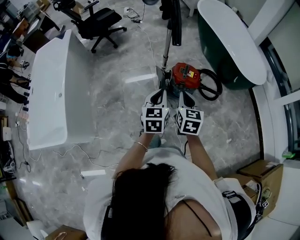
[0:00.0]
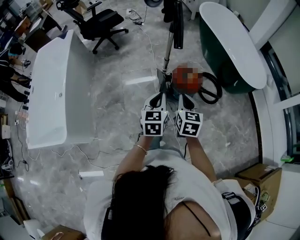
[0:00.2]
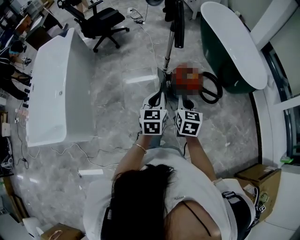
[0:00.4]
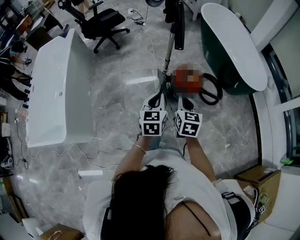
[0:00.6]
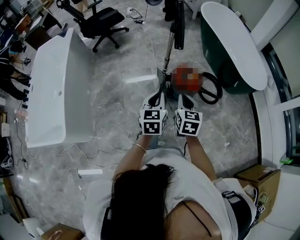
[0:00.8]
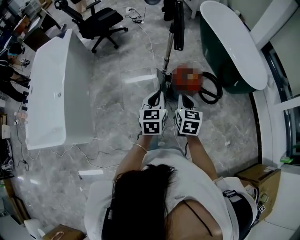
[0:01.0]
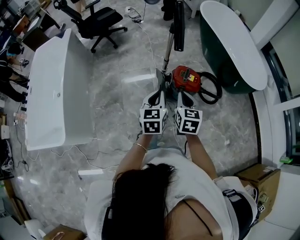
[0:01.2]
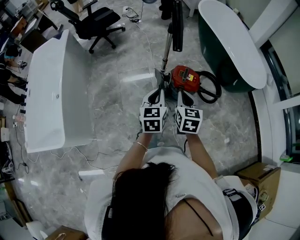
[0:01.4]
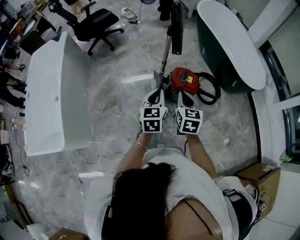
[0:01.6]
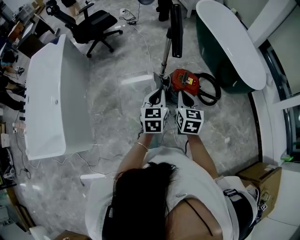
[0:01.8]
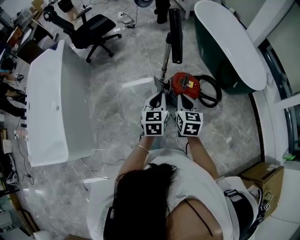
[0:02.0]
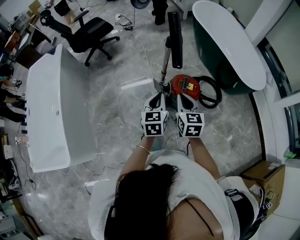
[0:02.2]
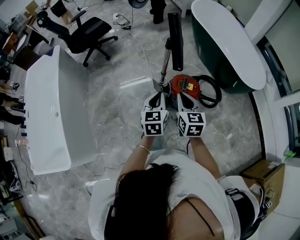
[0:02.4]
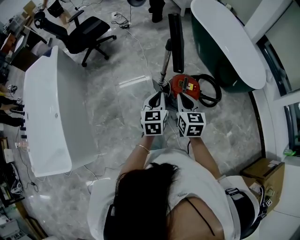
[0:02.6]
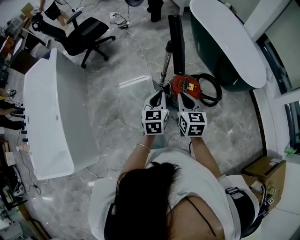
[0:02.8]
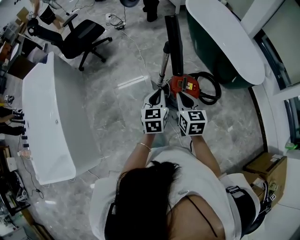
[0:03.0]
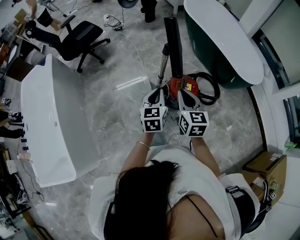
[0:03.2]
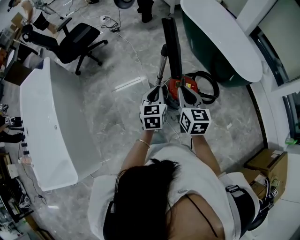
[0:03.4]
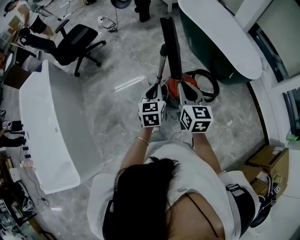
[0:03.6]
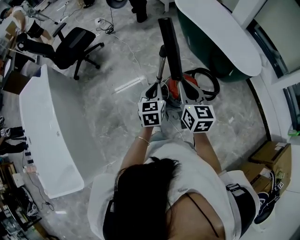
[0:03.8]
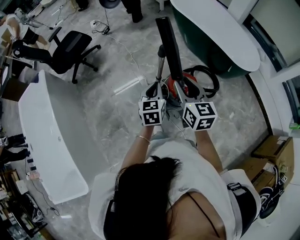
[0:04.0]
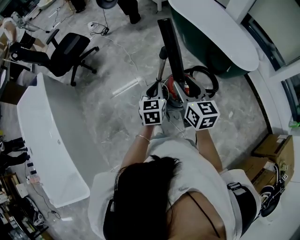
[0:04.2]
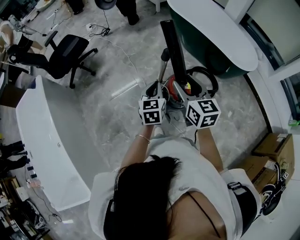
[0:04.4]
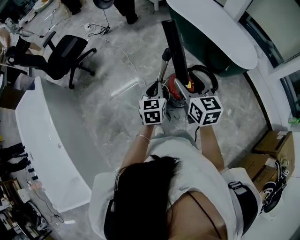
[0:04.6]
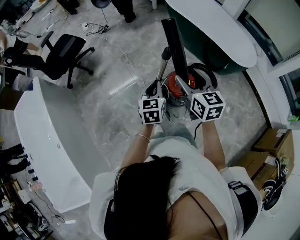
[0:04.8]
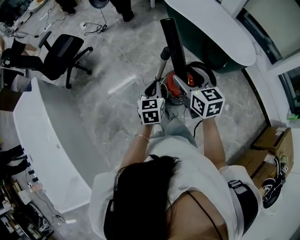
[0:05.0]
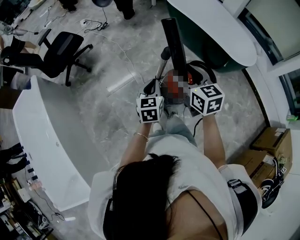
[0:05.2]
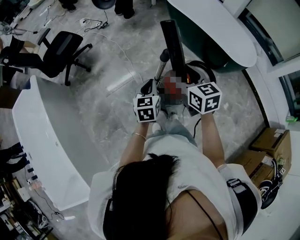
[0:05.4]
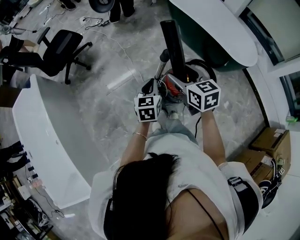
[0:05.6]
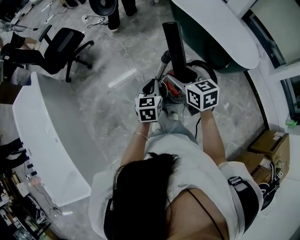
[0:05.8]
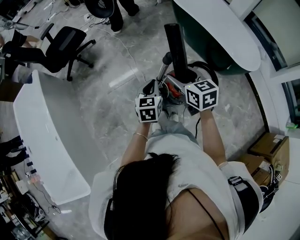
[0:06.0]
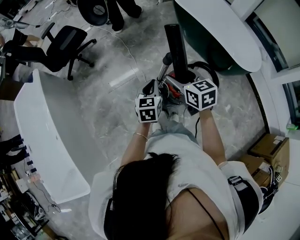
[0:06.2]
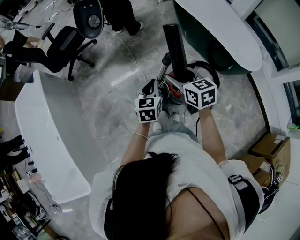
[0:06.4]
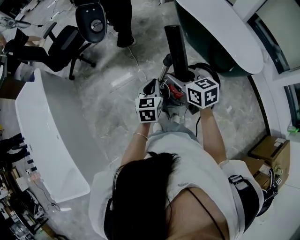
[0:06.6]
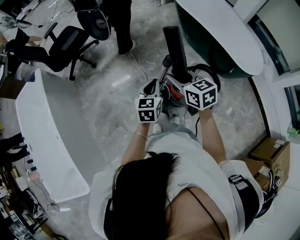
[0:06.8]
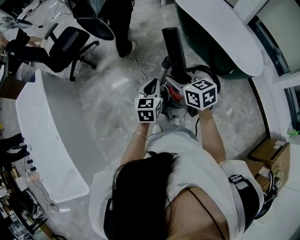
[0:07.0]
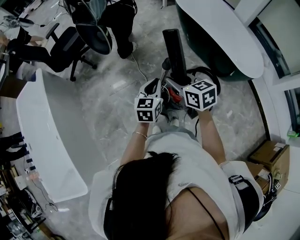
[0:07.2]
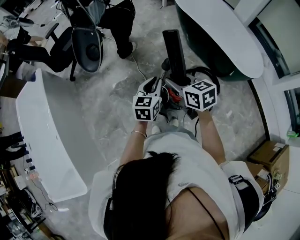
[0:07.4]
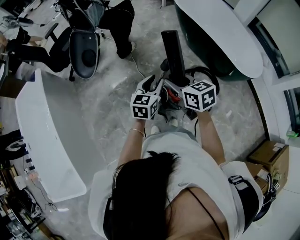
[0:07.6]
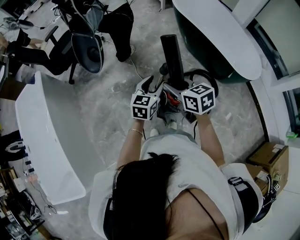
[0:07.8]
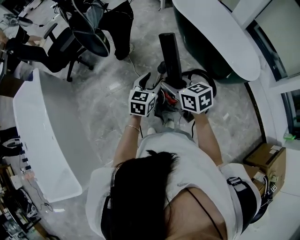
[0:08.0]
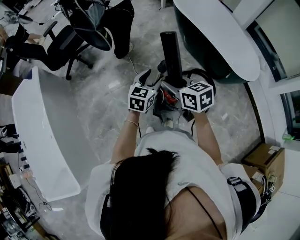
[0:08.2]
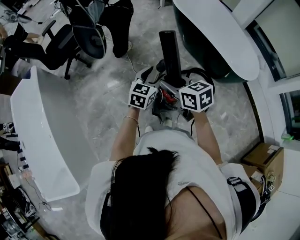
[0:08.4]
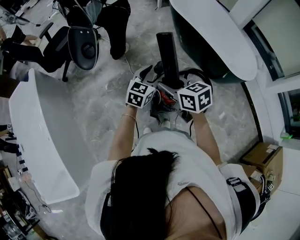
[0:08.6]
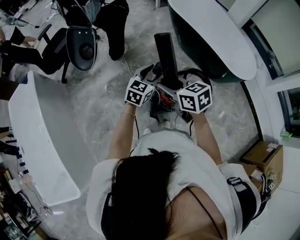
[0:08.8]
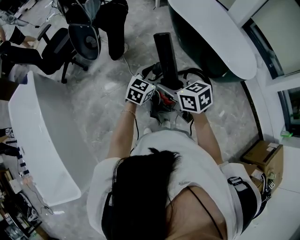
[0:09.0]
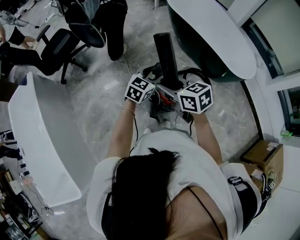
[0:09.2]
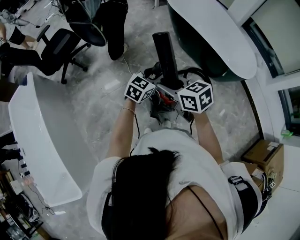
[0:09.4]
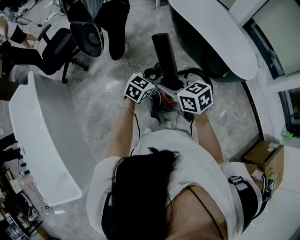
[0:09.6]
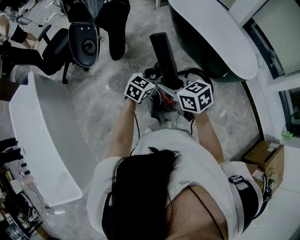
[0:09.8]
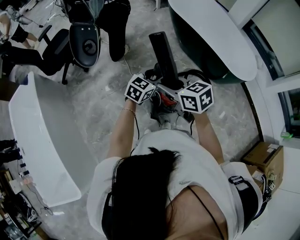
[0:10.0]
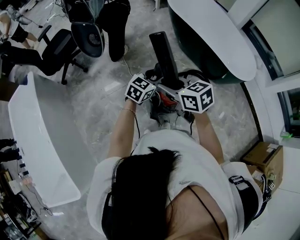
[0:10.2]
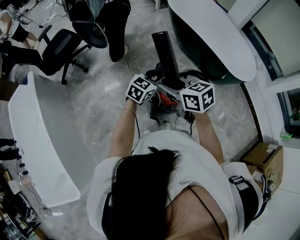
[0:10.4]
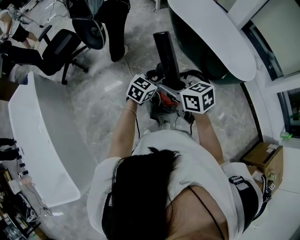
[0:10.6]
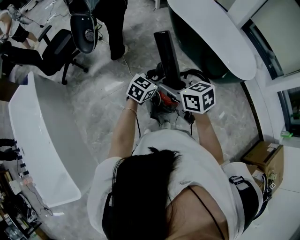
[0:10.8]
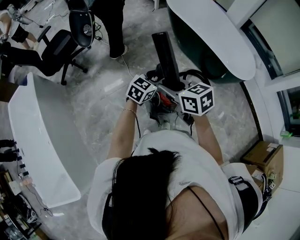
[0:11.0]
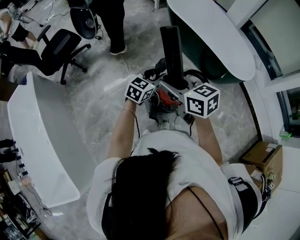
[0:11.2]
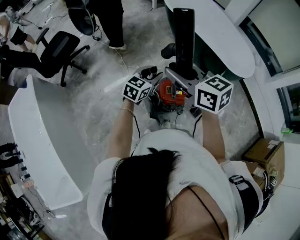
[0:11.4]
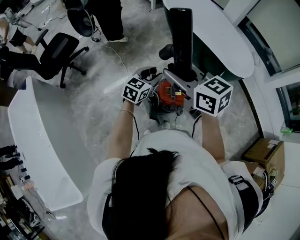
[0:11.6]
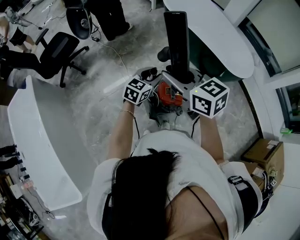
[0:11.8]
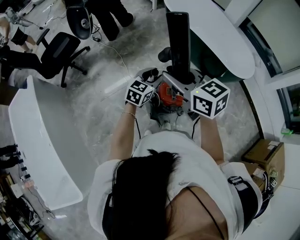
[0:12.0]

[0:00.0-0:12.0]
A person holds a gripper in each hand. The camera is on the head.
0:00.0 to 0:01.6: The grippers both shift forward by about 5 cm.
0:01.6 to 0:03.0: Both grippers travel together forward, roughly 15 cm.
0:03.0 to 0:04.4: The left gripper goes some 10 cm forward; the right gripper is displaced forward and upward by roughly 10 cm, and opens up.
0:04.4 to 0:06.0: The right gripper moves forward, about 5 cm.
0:06.0 to 0:07.6: The right gripper closes its fingers; the left gripper changes place by about 5 cm, and opens its fingers.
0:07.6 to 0:09.0: The left gripper shifts approximately 10 cm to the right and forward, rotates some 20 degrees, and opens up.
0:09.0 to 0:10.4: The grippers make only small movements.
0:10.4 to 0:12.0: The right gripper goes some 10 cm upward.

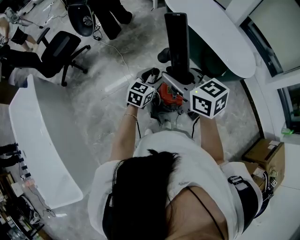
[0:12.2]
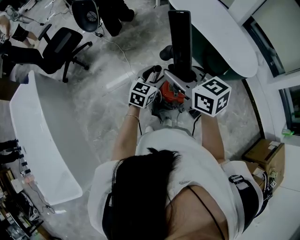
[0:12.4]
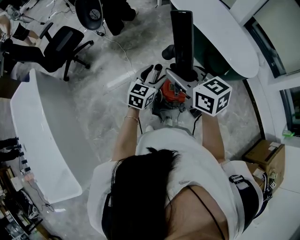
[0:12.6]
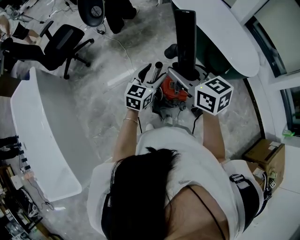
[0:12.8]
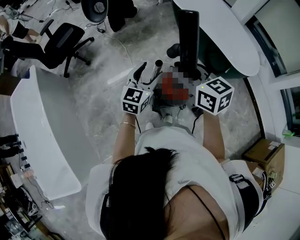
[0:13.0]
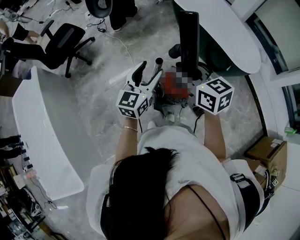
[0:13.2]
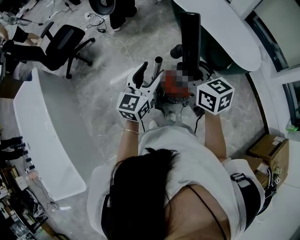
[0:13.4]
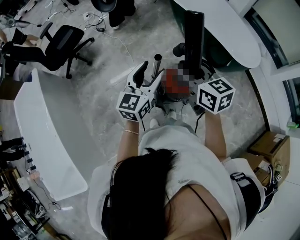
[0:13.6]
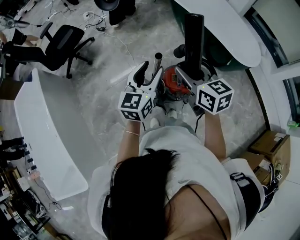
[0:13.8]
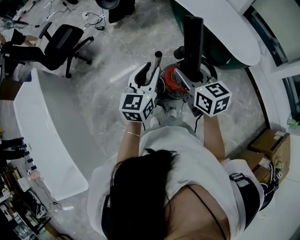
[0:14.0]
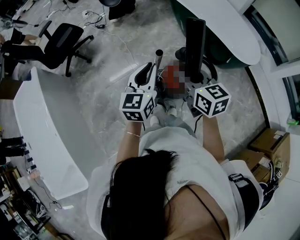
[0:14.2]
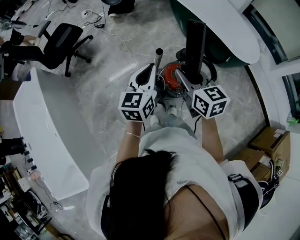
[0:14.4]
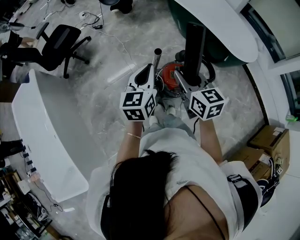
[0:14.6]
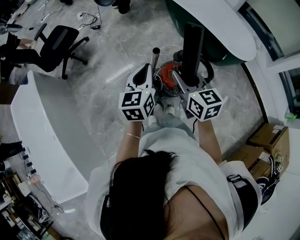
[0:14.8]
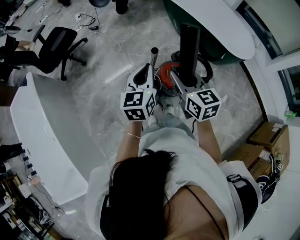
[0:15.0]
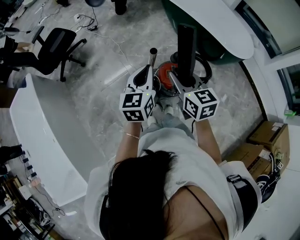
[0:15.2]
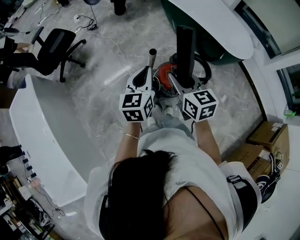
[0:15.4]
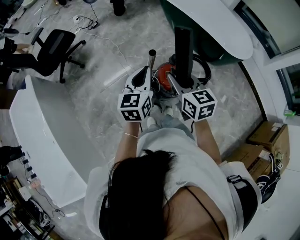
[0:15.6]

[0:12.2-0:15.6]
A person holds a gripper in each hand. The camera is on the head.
0:12.2 to 0:13.8: The left gripper heads upward, backward and to the left, covering approximately 15 cm, and changes its angle by some 20 degrees. The right gripper changes place by some 5 cm.
0:13.8 to 0:15.6: The left gripper closes its fingers, while the right gripper changes place by some 5 cm.

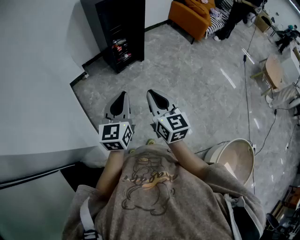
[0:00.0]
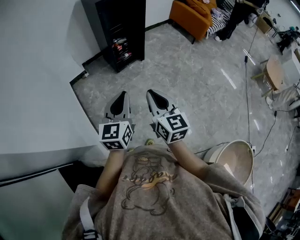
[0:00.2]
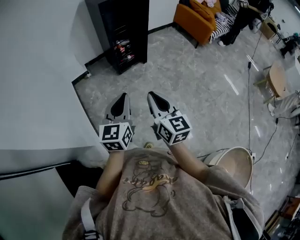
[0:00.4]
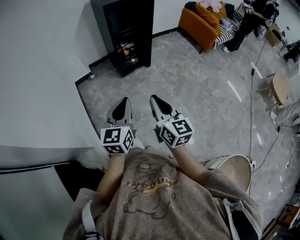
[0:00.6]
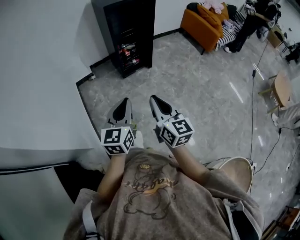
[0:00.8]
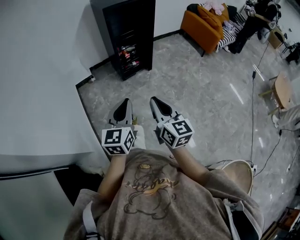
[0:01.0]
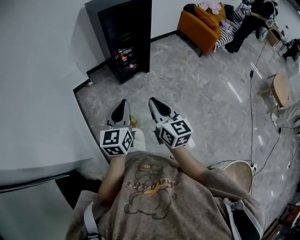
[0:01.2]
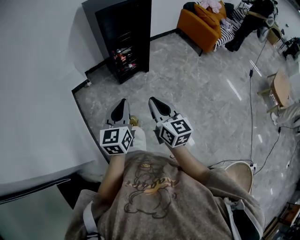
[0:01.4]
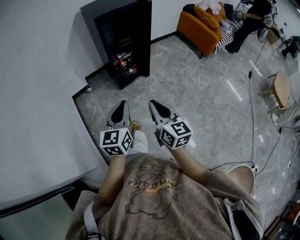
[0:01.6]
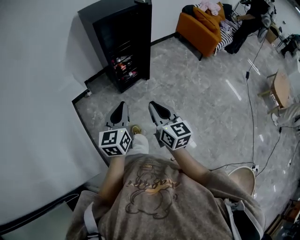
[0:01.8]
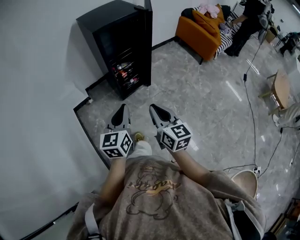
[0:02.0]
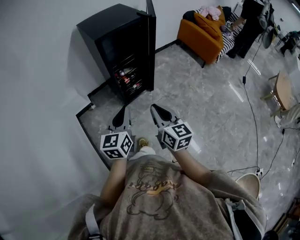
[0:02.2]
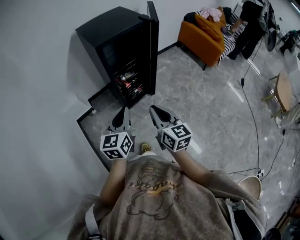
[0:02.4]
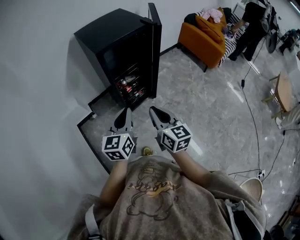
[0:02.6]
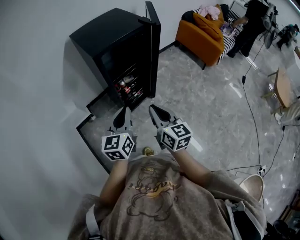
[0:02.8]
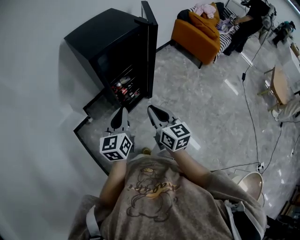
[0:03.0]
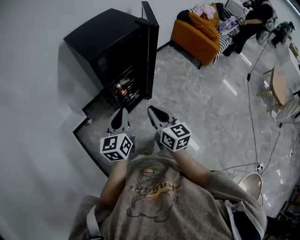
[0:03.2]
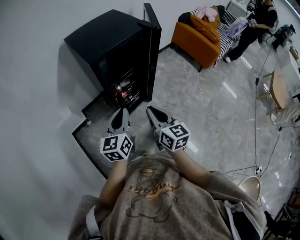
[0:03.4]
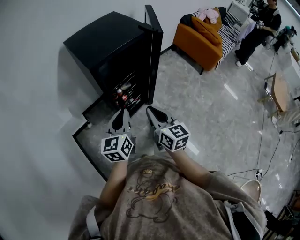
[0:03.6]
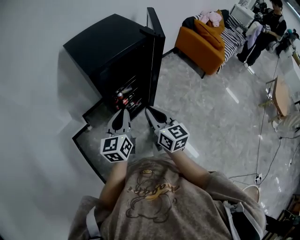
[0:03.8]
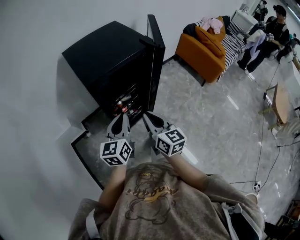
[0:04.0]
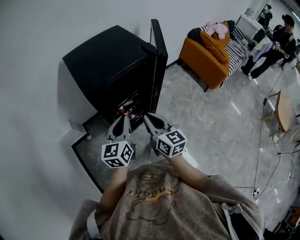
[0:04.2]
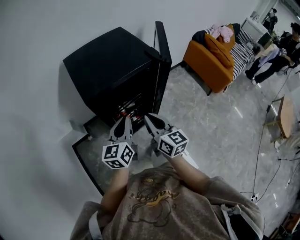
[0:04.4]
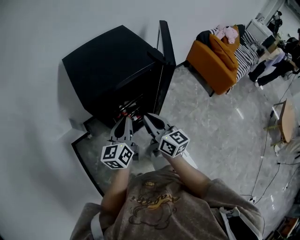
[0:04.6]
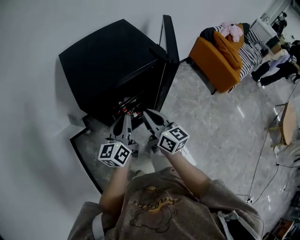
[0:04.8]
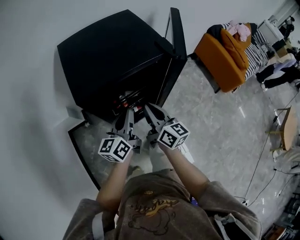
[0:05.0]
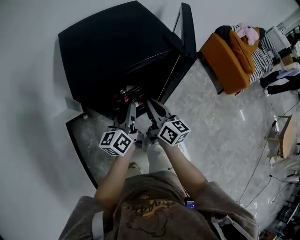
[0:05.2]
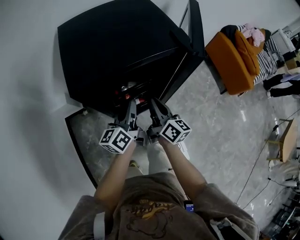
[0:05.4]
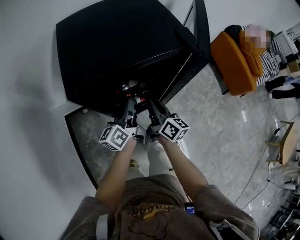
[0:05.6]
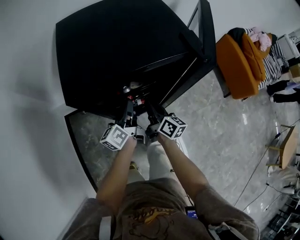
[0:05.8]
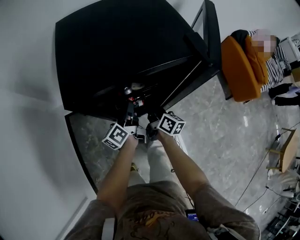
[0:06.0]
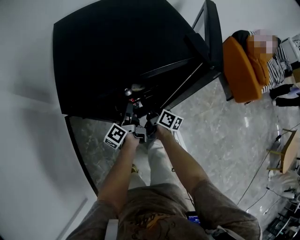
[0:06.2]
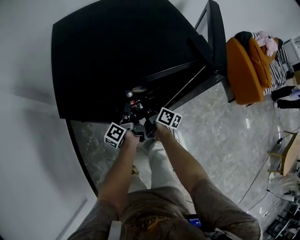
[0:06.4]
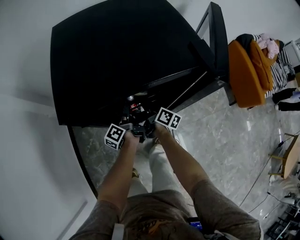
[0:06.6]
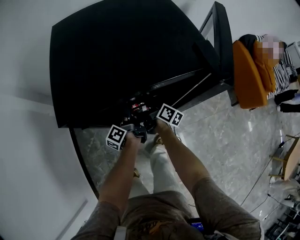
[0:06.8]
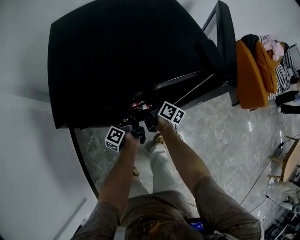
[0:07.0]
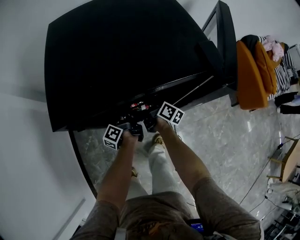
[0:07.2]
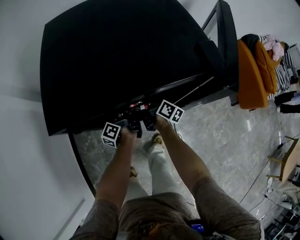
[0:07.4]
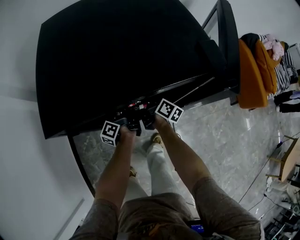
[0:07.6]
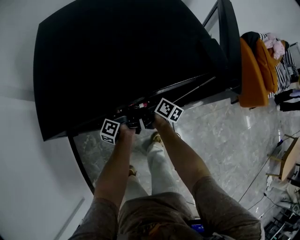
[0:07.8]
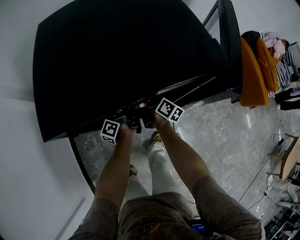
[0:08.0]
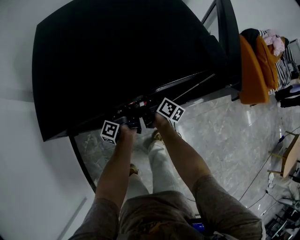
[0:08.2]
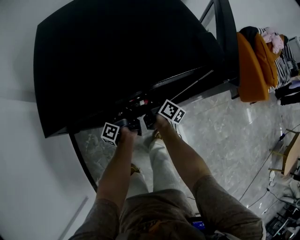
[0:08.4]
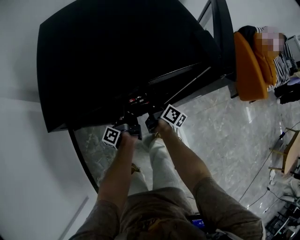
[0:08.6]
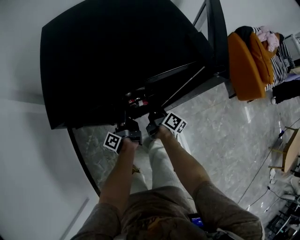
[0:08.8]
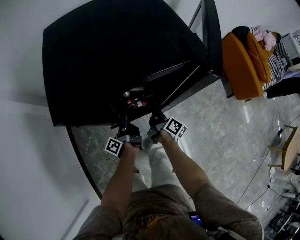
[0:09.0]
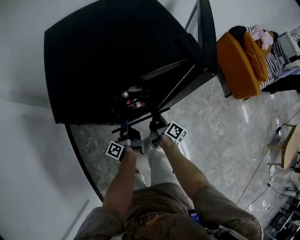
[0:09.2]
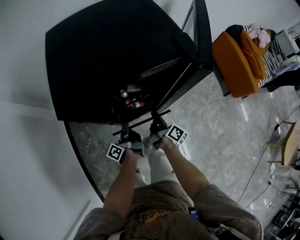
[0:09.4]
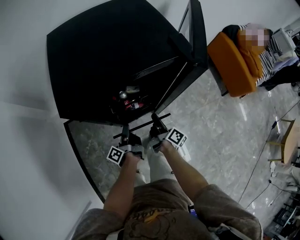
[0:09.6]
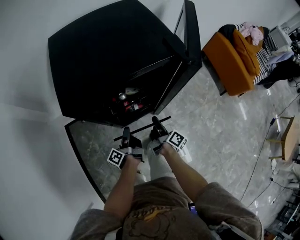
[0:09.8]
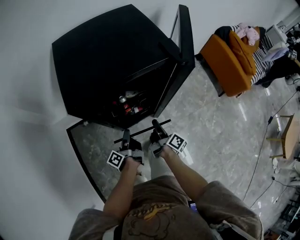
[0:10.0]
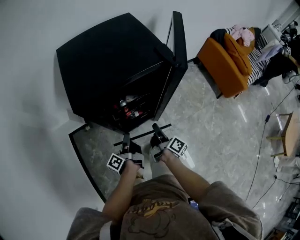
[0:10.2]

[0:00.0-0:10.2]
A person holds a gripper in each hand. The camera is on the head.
0:00.0 to 0:01.4: The left gripper moves forward, about 10 cm, while the right gripper is displaced forward and to the right by roughly 10 cm.
0:01.4 to 0:03.0: The two grippers go roughly 35 cm forward.
0:03.0 to 0:04.4: The grippers both shift forward by roughly 20 cm.
0:04.4 to 0:05.8: The two grippers go roughly 20 cm downward and forward. The left gripper swivels some 40 degrees. The right gripper rotates about 30 degrees.
0:05.8 to 0:07.2: The left gripper moves downward and forward, roughly 15 cm, changes its angle by about 30 degrees, and opens, while the right gripper travels forward and downward by some 15 cm, and opens up.
0:07.2 to 0:08.8: The right gripper goes some 5 cm backward, and closes. Meanwhile the left gripper closes its fingers.
0:08.8 to 0:10.2: Both grippers move backward and upward, about 15 cm.
